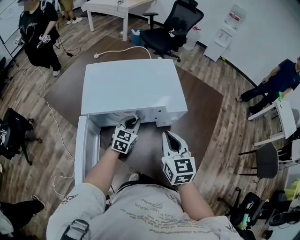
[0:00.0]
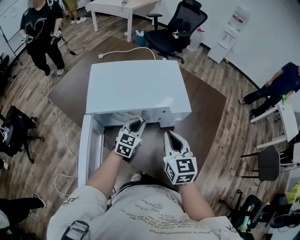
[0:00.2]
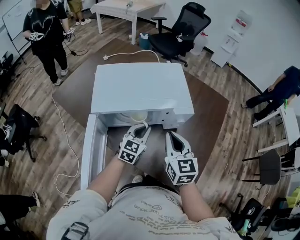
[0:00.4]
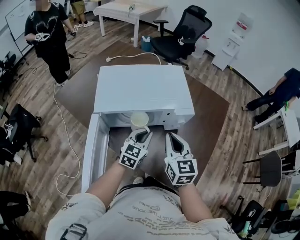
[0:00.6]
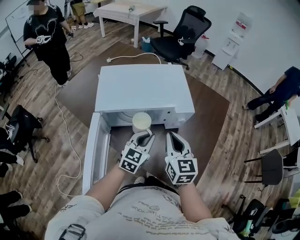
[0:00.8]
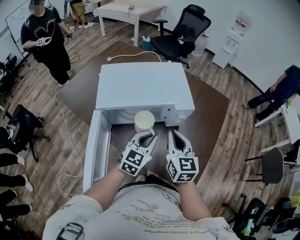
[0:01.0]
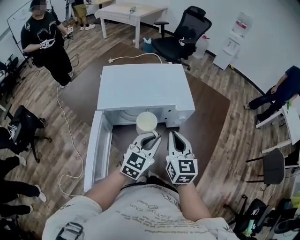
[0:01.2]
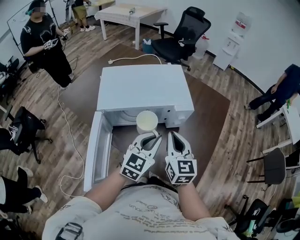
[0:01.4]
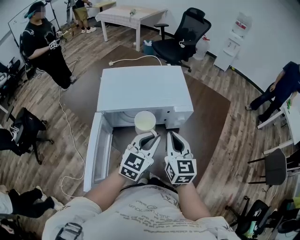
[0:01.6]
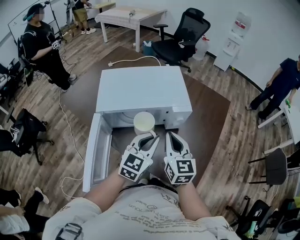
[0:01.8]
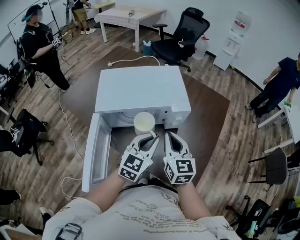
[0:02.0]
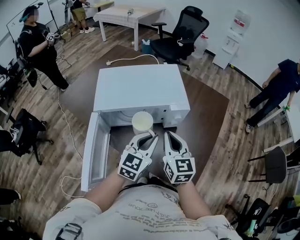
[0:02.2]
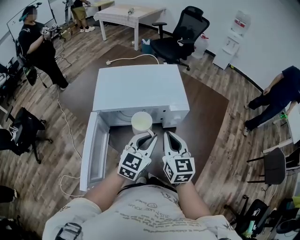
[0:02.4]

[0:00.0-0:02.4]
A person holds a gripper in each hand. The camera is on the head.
0:00.0 to 0:01.2: The left gripper is displaced backward, upward and to the right by approximately 20 cm.
0:01.2 to 0:02.4: The grippers move only a little.

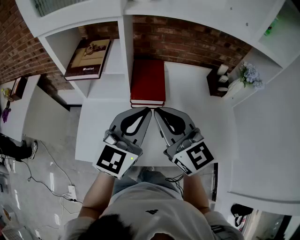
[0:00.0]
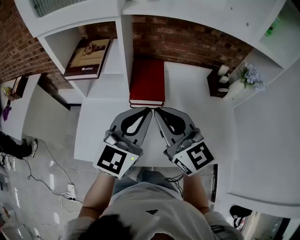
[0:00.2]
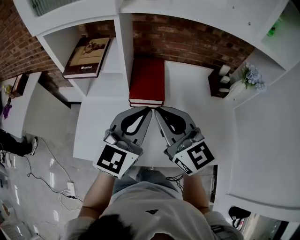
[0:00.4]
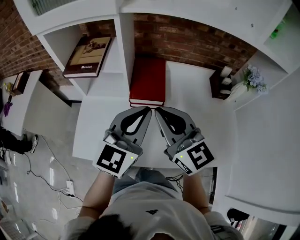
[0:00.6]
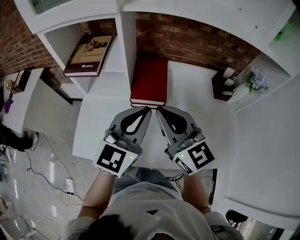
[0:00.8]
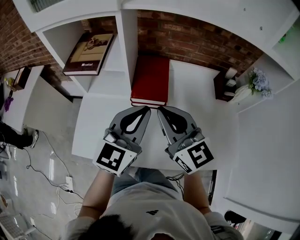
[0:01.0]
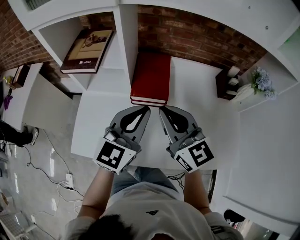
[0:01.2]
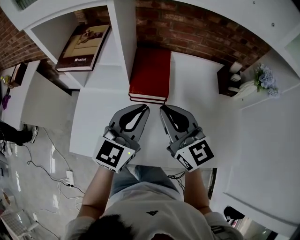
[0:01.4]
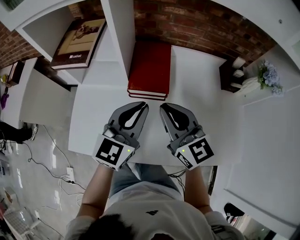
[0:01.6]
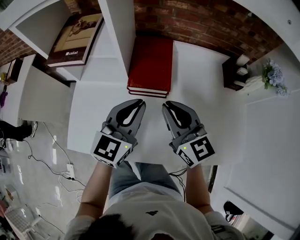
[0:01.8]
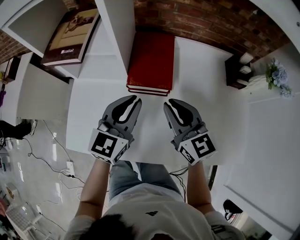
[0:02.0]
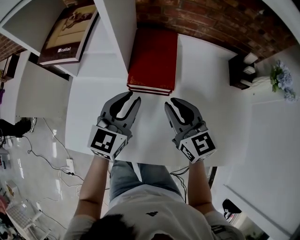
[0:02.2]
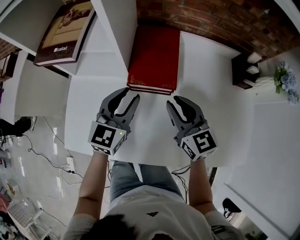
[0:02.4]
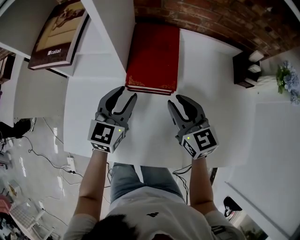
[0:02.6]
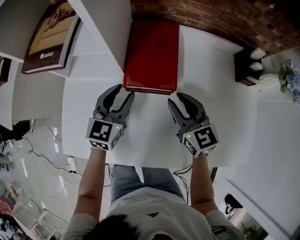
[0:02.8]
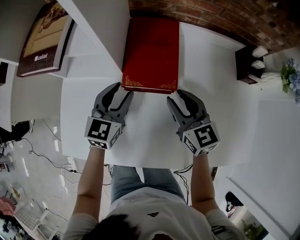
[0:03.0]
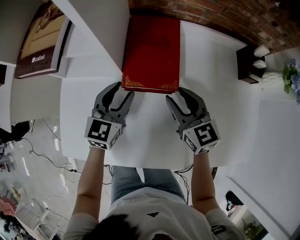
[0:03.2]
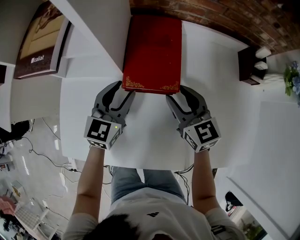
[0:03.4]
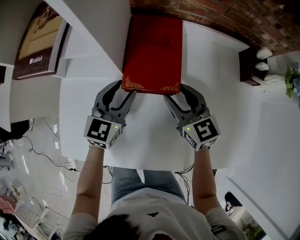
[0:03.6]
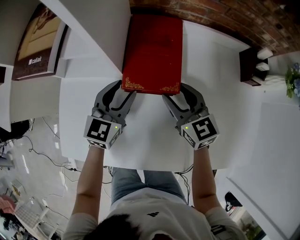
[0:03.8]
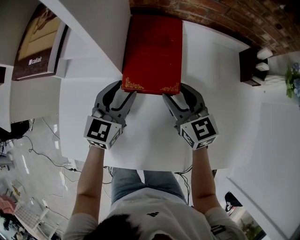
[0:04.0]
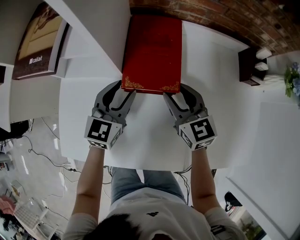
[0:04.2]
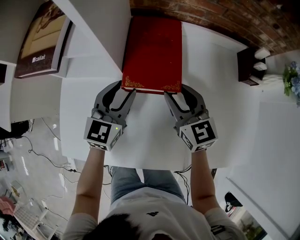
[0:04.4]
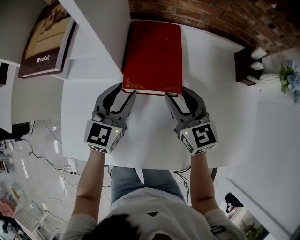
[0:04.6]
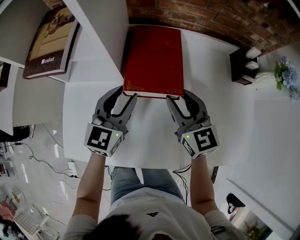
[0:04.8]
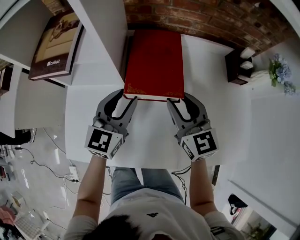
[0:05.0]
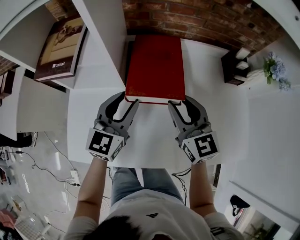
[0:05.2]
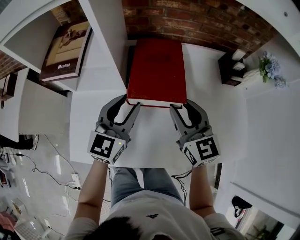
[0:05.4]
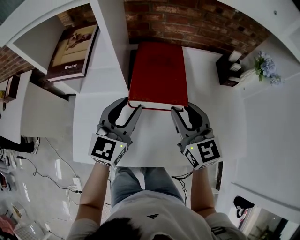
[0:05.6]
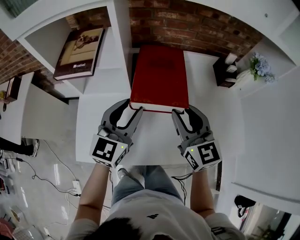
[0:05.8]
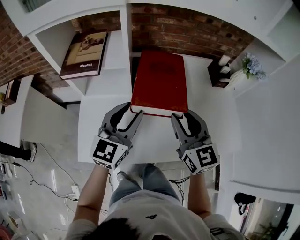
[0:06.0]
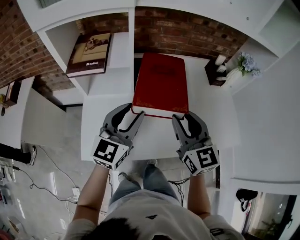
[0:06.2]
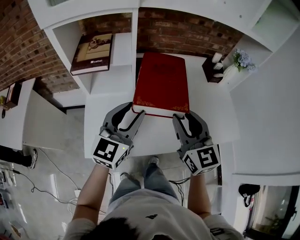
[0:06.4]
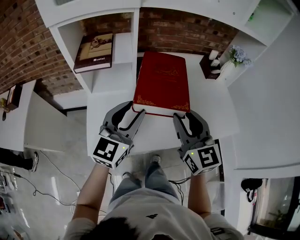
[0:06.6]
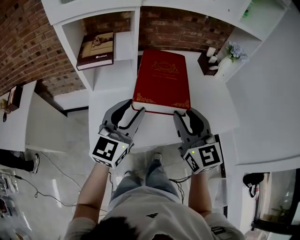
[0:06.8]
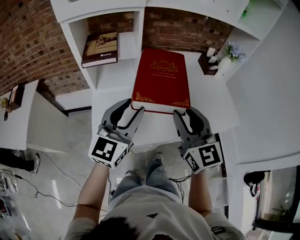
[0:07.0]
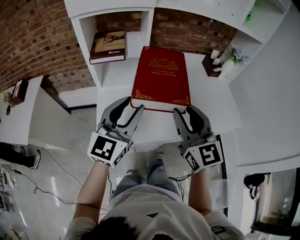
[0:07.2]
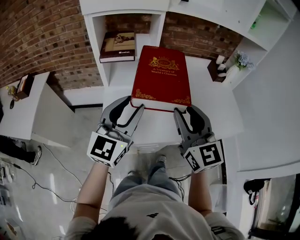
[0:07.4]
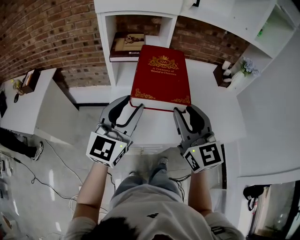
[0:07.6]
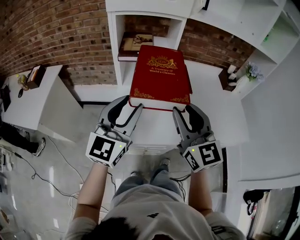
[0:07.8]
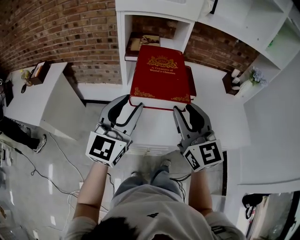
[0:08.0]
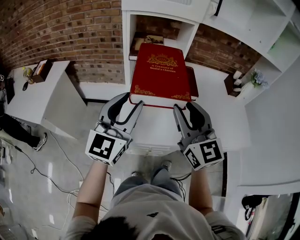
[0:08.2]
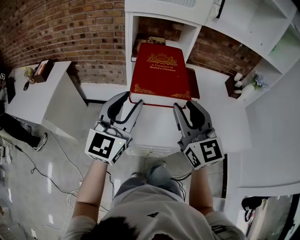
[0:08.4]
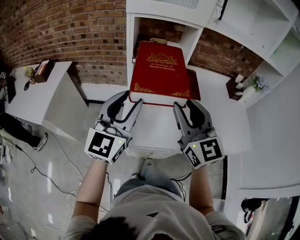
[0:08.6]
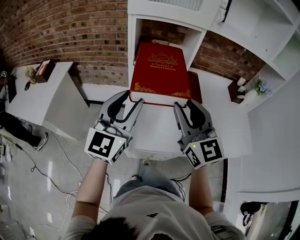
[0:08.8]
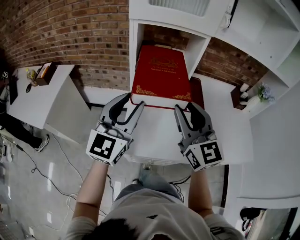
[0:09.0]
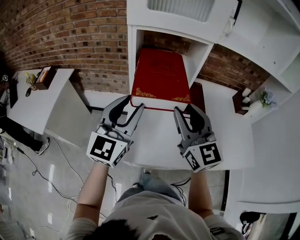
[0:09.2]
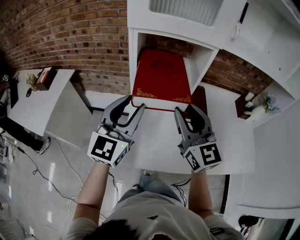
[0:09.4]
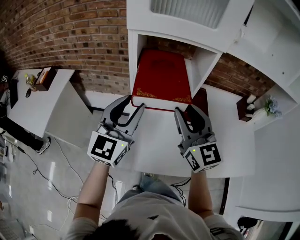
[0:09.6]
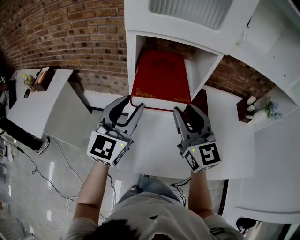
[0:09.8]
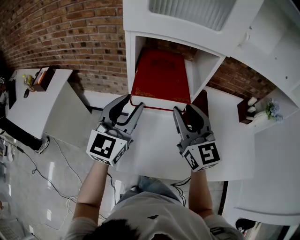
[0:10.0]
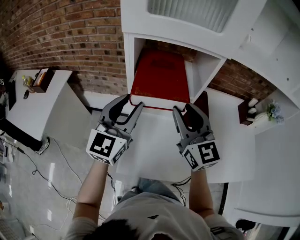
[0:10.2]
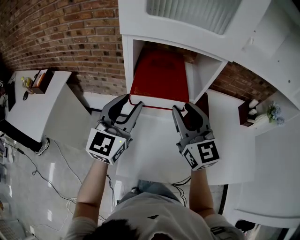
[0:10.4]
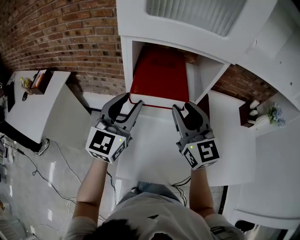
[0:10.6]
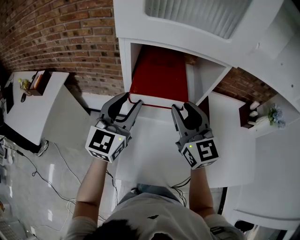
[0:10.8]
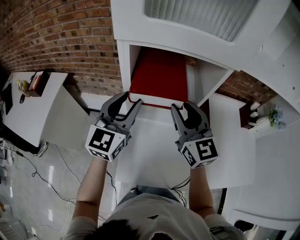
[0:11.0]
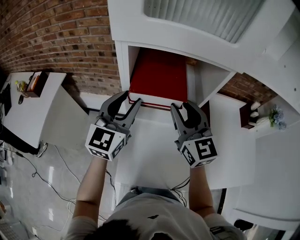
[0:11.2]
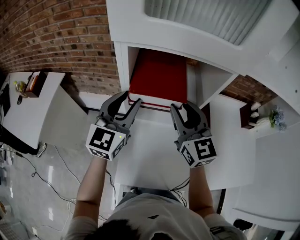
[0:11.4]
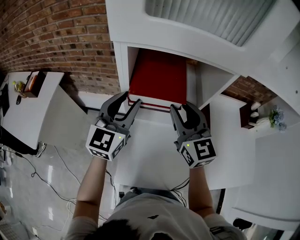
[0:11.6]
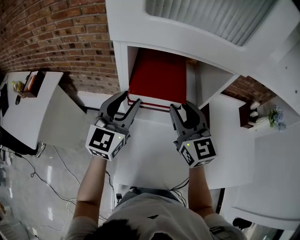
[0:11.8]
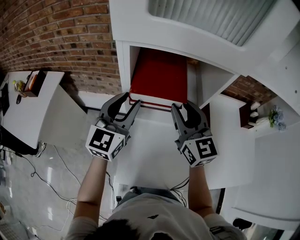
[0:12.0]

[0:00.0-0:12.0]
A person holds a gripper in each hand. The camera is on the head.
0:00.0 to 0:01.6: Both grippers travel together downward and forward, about 10 cm.
0:01.6 to 0:03.0: Both grippers move downward and forward, some 20 cm. The left gripper opens up, while the right gripper opens.
0:03.0 to 0:04.4: There are only small adjustments of the grippers.
0:04.4 to 0:06.0: Both grippers travel together upward and backward, about 20 cm.
0:06.0 to 0:07.6: The two grippers go about 25 cm backward, to the left and upward.
0:07.6 to 0:09.0: The two grippers go some 10 cm to the left and forward.
0:09.0 to 0:10.4: The grippers both shift forward by about 15 cm.
0:10.4 to 0:12.0: Both grippers move forward, about 5 cm.

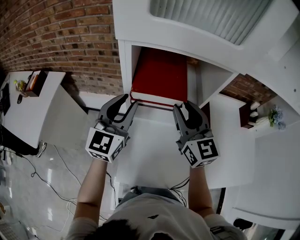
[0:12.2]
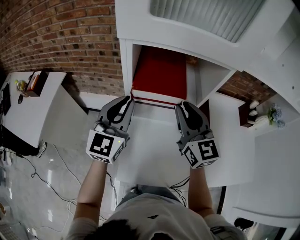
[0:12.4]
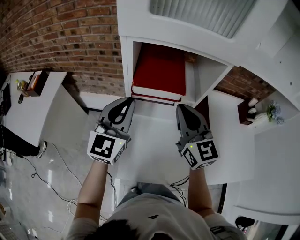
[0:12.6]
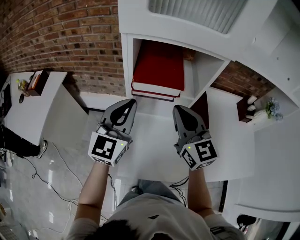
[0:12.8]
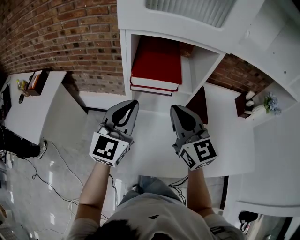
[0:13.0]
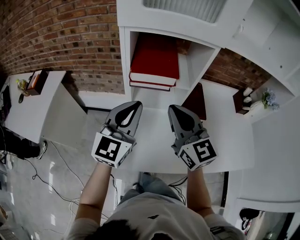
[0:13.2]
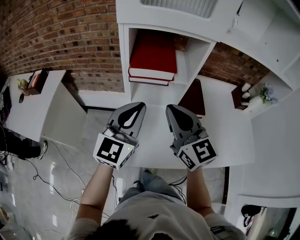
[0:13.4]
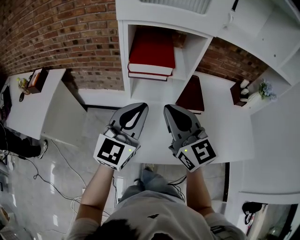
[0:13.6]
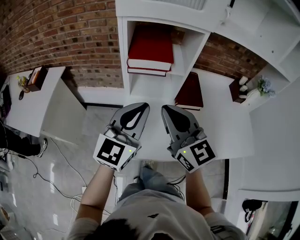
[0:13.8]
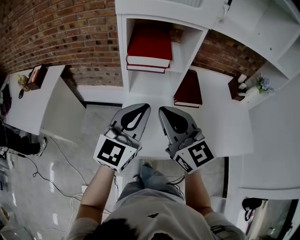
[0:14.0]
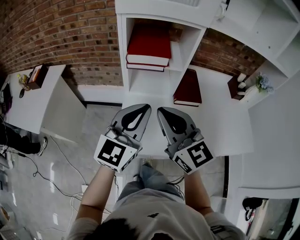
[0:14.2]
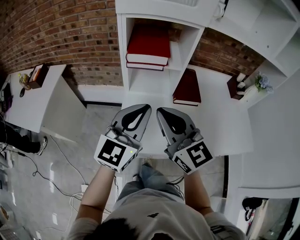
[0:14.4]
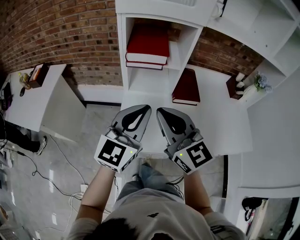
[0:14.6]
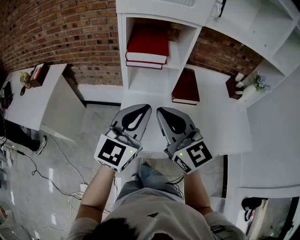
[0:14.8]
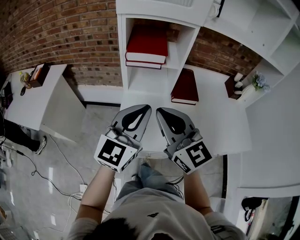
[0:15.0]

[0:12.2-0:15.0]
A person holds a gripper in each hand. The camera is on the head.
0:12.2 to 0:13.6: The two grippers go approximately 15 cm backward. The right gripper closes; the left gripper closes.
0:13.6 to 0:15.0: Both grippers travel together backward, roughly 10 cm.

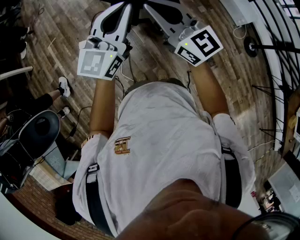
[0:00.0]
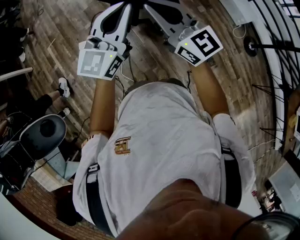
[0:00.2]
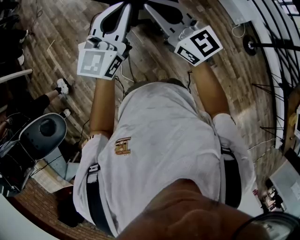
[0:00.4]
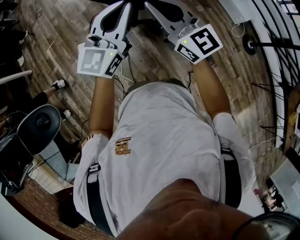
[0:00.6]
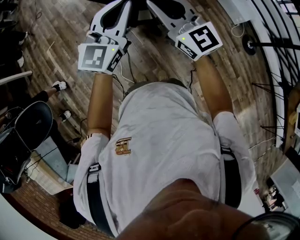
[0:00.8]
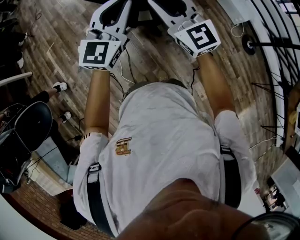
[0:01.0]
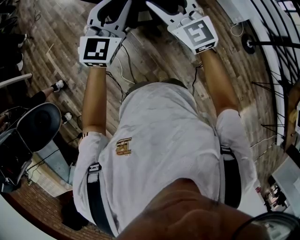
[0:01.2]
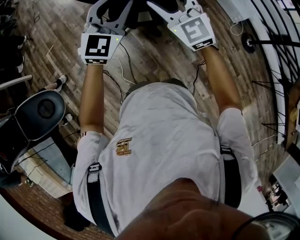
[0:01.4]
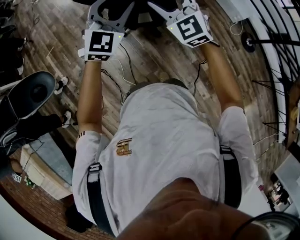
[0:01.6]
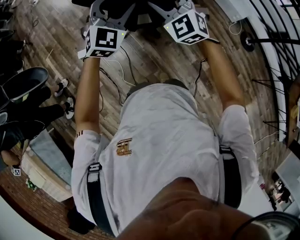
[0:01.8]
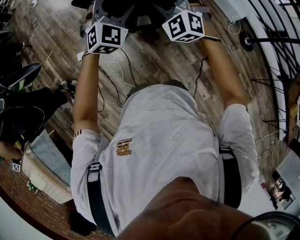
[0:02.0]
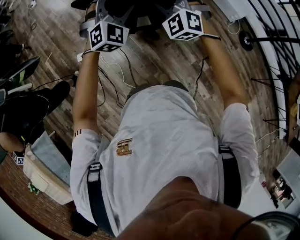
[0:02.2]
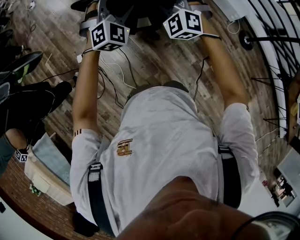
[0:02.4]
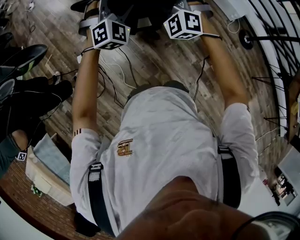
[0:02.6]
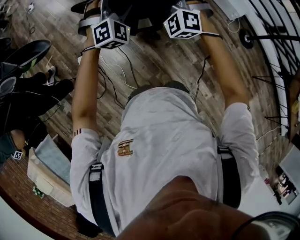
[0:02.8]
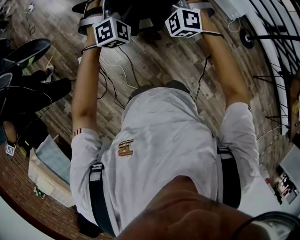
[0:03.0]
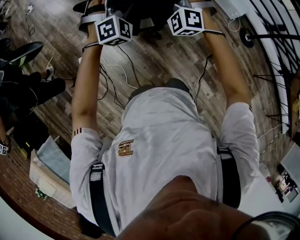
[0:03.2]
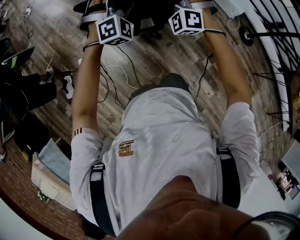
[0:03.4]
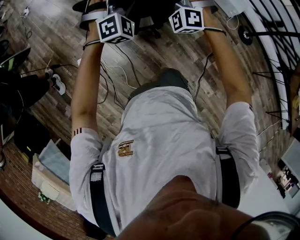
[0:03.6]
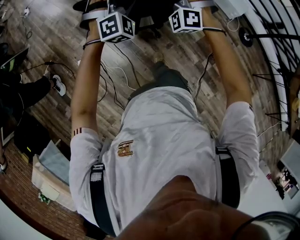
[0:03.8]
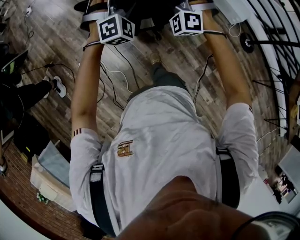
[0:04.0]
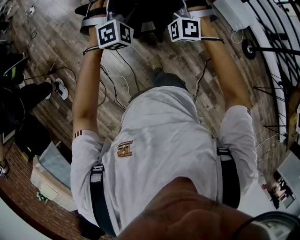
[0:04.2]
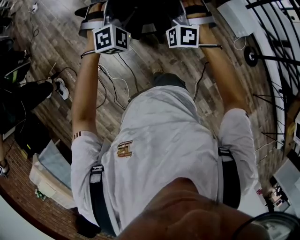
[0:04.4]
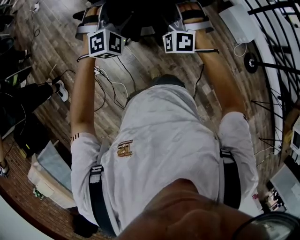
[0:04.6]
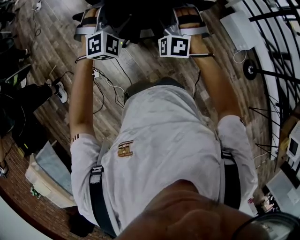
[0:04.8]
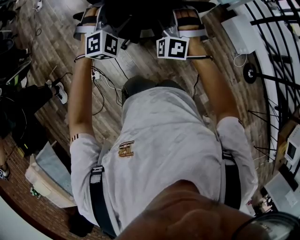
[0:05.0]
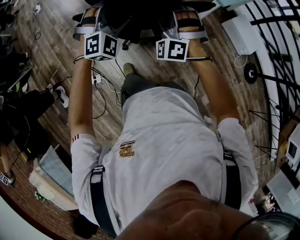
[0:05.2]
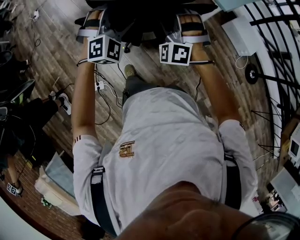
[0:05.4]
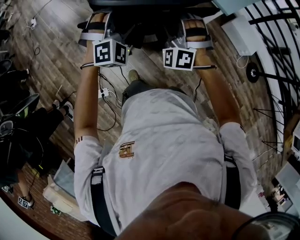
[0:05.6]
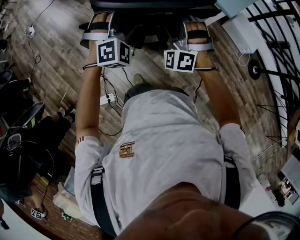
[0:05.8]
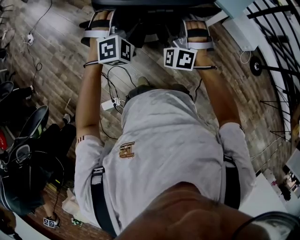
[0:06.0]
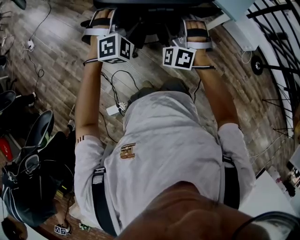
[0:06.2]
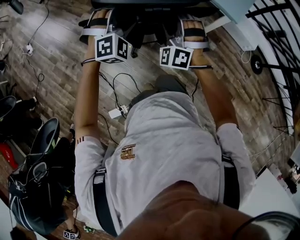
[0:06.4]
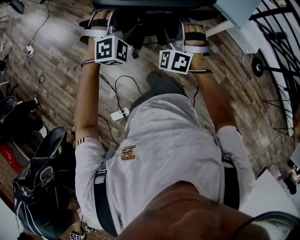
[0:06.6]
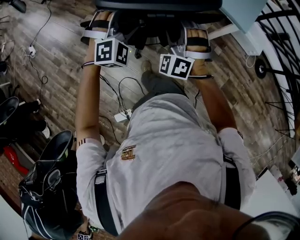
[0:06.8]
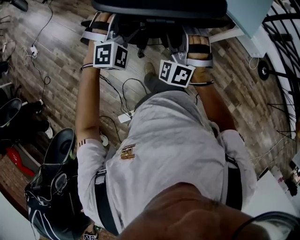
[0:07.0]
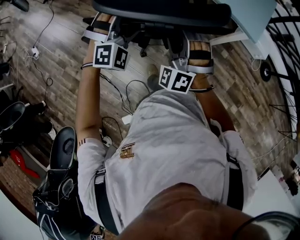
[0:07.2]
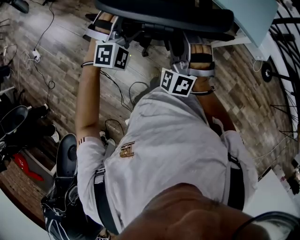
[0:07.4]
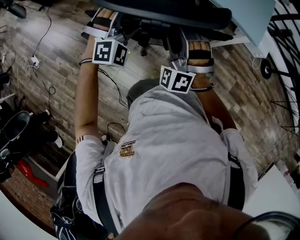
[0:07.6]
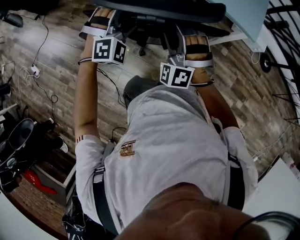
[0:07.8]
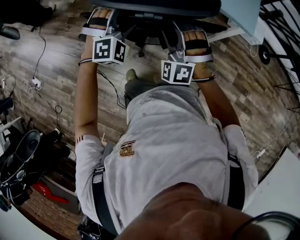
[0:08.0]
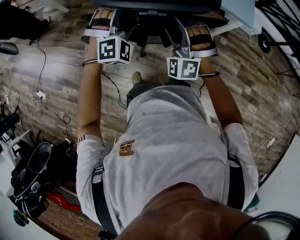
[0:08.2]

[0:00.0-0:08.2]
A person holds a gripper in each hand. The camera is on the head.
0:00.0 to 0:01.6: The grippers both shift forward by some 10 cm. The right gripper rotates some 50 degrees, and opens. Meanwhile the left gripper swivels about 30 degrees, and opens its fingers.
0:01.6 to 0:03.2: Both grippers move forward and downward, about 15 cm. The right gripper changes its angle by approximately 40 degrees, while the left gripper rotates about 40 degrees, and opens.
0:03.2 to 0:05.0: The two grippers go roughly 35 cm forward.
0:05.0 to 0:06.6: The pair of grippers is taken forward and to the left, approximately 50 cm. The right gripper turns by approximately 20 degrees.
0:06.6 to 0:08.2: Both grippers move forward and to the left, some 30 cm.
